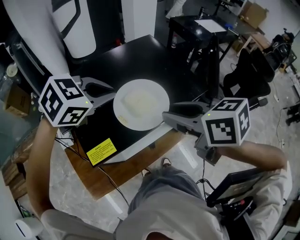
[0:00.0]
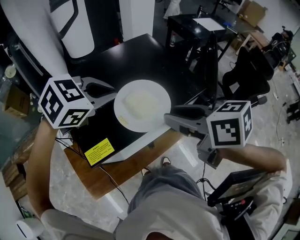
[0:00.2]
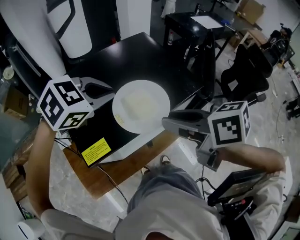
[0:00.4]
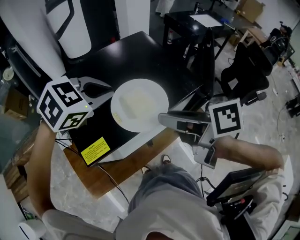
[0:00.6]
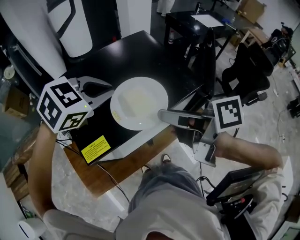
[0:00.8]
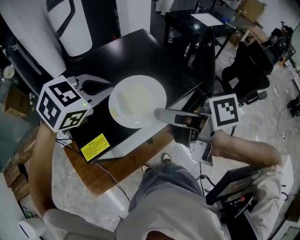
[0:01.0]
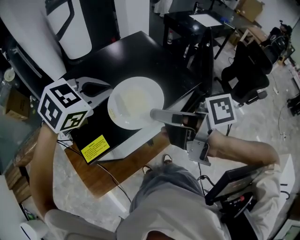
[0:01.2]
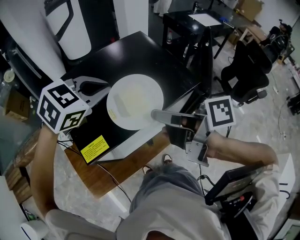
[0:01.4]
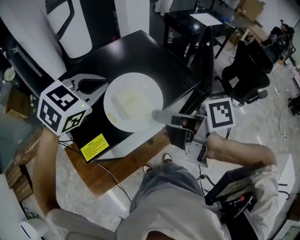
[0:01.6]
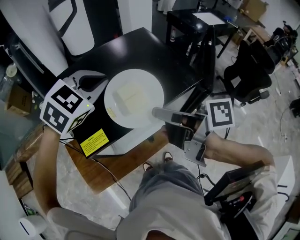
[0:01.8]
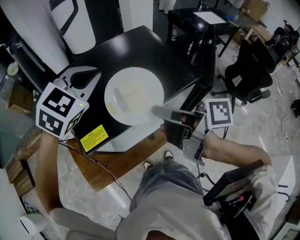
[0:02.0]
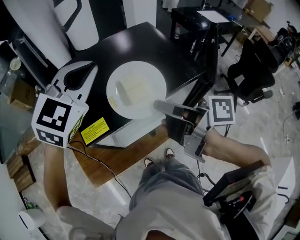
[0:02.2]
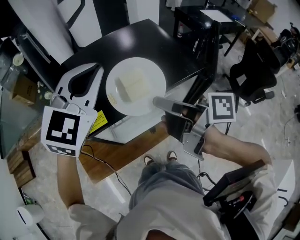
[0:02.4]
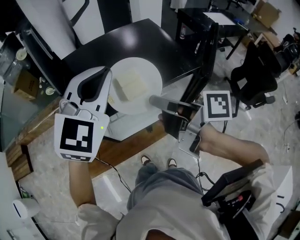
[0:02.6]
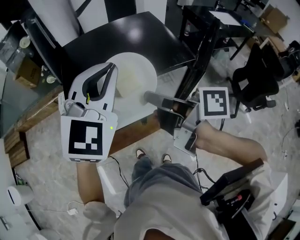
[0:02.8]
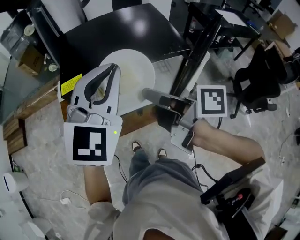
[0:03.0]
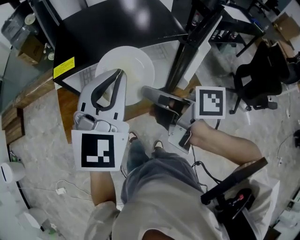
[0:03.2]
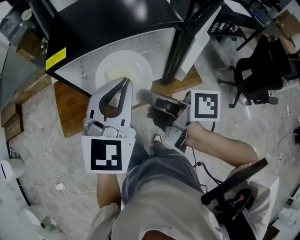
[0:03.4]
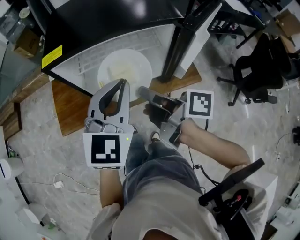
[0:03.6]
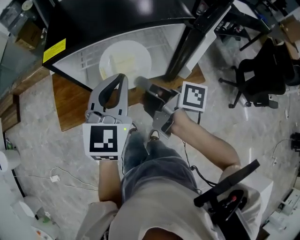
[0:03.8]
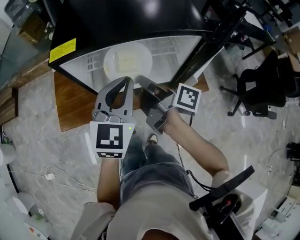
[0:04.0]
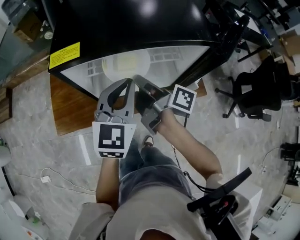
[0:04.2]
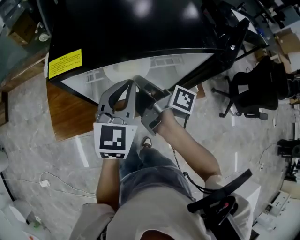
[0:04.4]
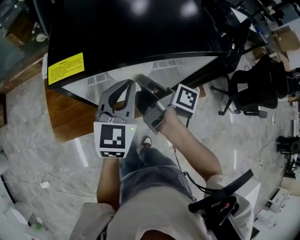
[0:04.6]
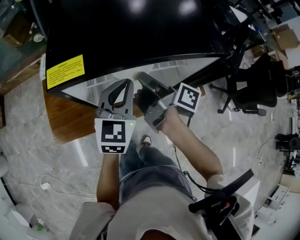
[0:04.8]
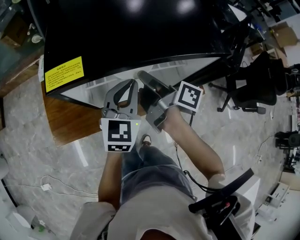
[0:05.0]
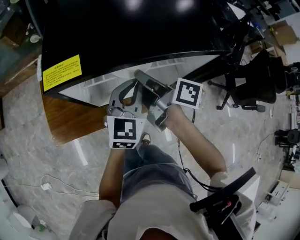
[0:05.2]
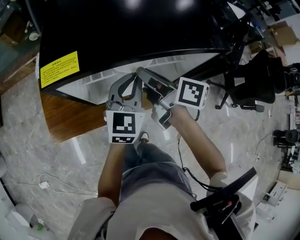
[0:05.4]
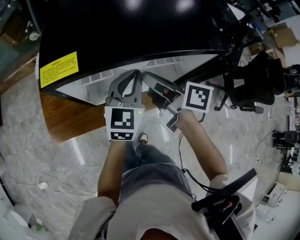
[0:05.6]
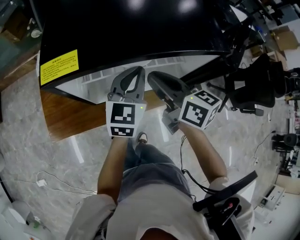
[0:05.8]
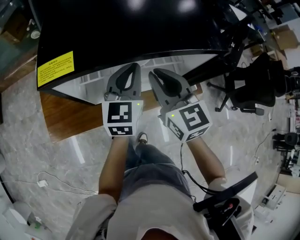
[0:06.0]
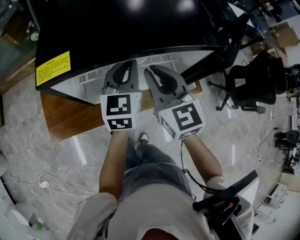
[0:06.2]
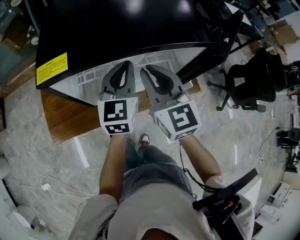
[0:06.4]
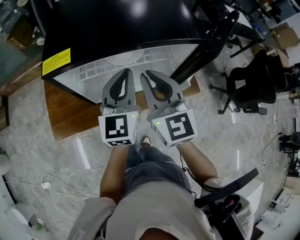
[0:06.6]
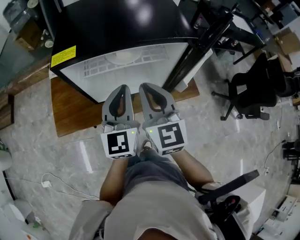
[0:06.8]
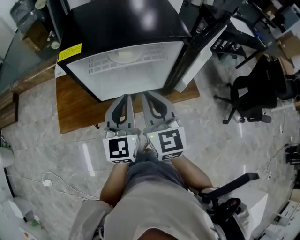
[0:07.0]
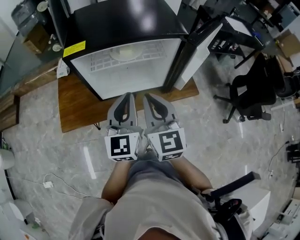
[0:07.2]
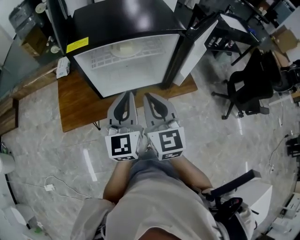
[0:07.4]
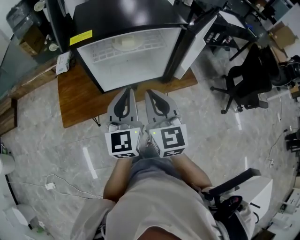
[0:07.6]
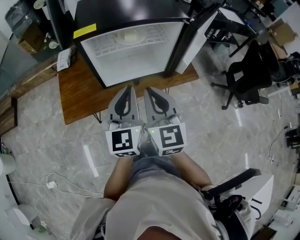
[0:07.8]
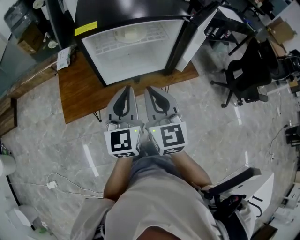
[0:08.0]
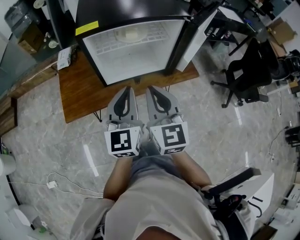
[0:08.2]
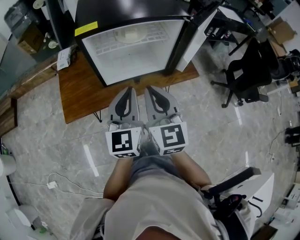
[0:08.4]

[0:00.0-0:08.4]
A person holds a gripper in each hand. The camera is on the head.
0:00.0 to 0:01.4: The right gripper changes its angle by some 50 degrees, and closes its fingers.
0:01.4 to 0:02.8: The right gripper shifts about 5 cm backward; the left gripper travels backward, upward and to the right by about 15 cm, and points its fingers roughly 30 degrees further upward.
0:02.8 to 0:04.2: Both grippers travel together downward, roughly 20 cm. The left gripper rotates some 30 degrees.
0:04.2 to 0:05.6: The left gripper heads forward and downward, covering approximately 10 cm; the right gripper swivels some 30 degrees.
0:05.6 to 0:07.0: The two grippers go some 25 cm backward. The right gripper twists some 60 degrees counterclockwise, seen from behind.
0:07.0 to 0:08.4: The two grippers go some 15 cm backward and to the left.

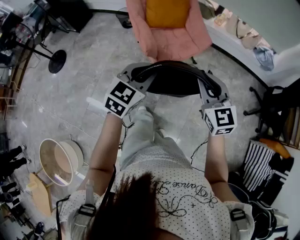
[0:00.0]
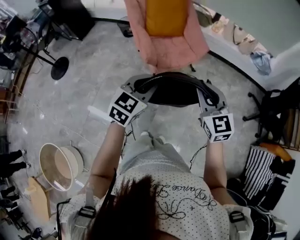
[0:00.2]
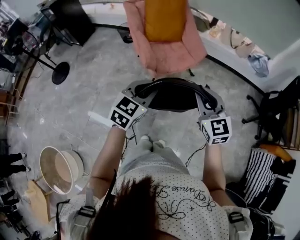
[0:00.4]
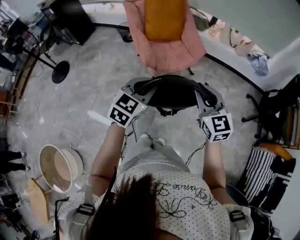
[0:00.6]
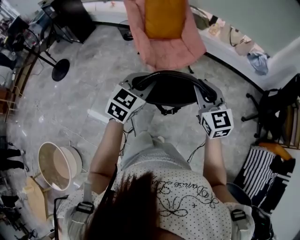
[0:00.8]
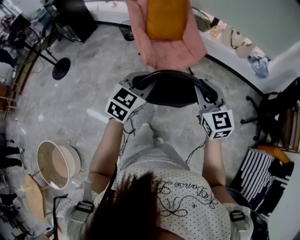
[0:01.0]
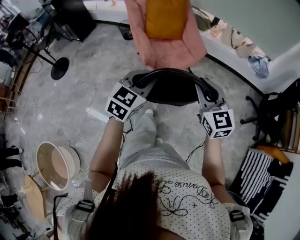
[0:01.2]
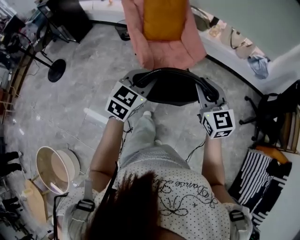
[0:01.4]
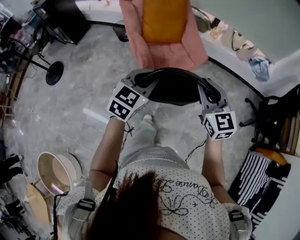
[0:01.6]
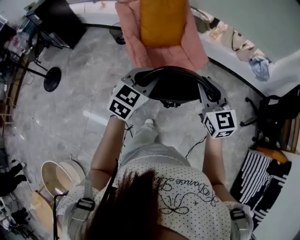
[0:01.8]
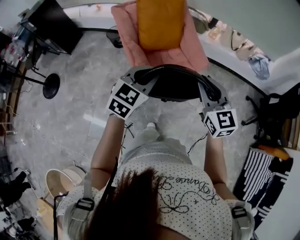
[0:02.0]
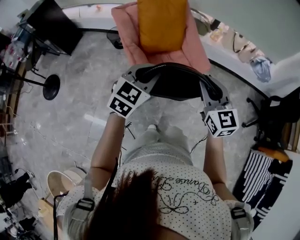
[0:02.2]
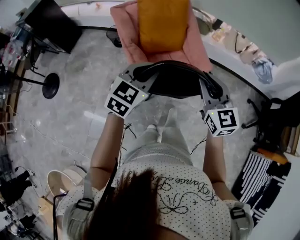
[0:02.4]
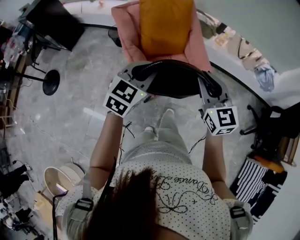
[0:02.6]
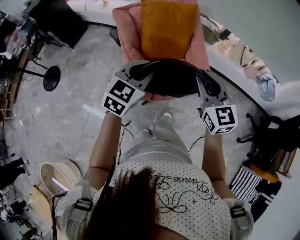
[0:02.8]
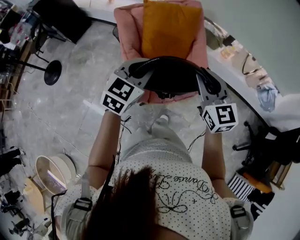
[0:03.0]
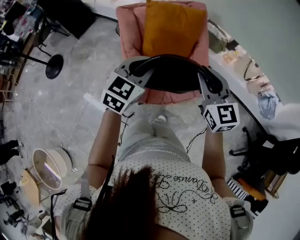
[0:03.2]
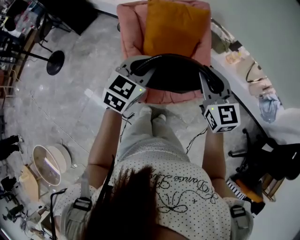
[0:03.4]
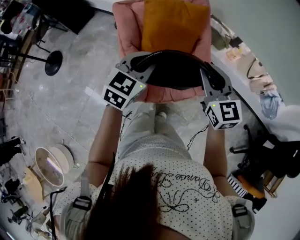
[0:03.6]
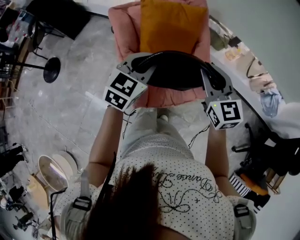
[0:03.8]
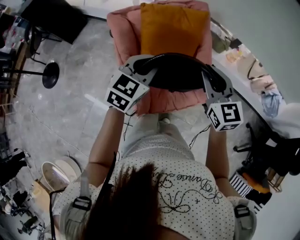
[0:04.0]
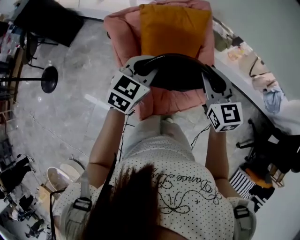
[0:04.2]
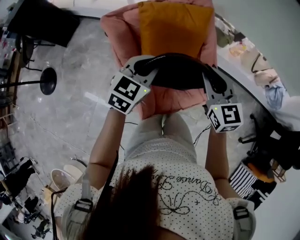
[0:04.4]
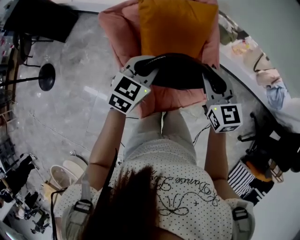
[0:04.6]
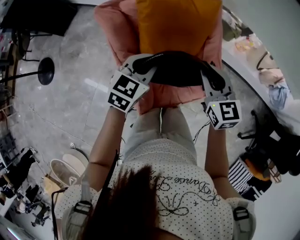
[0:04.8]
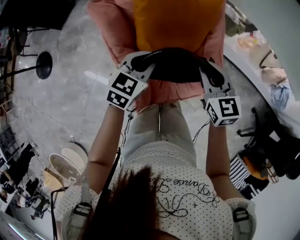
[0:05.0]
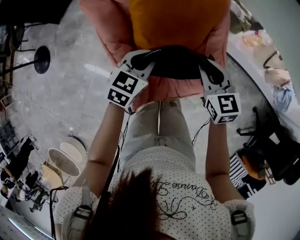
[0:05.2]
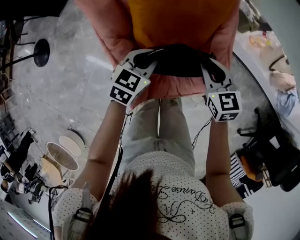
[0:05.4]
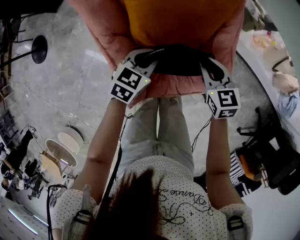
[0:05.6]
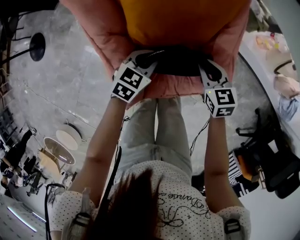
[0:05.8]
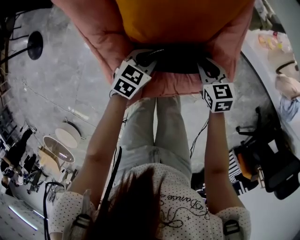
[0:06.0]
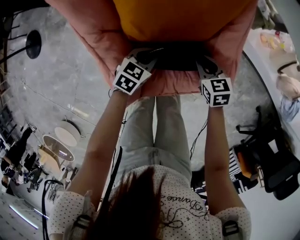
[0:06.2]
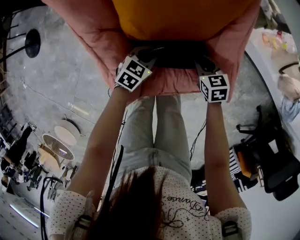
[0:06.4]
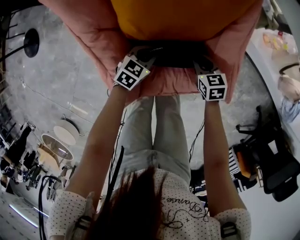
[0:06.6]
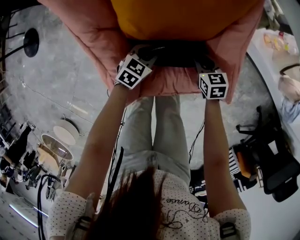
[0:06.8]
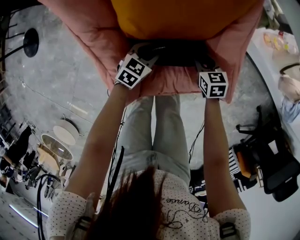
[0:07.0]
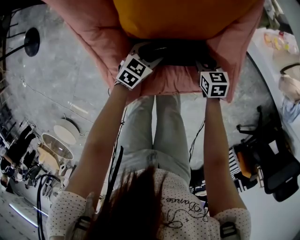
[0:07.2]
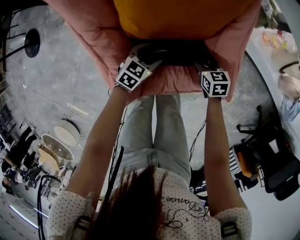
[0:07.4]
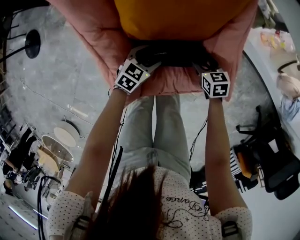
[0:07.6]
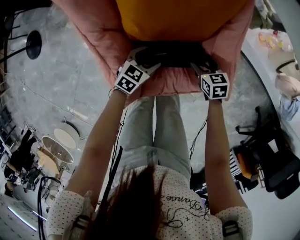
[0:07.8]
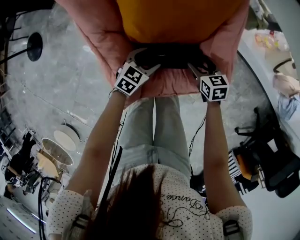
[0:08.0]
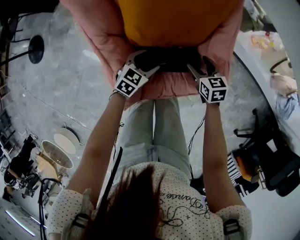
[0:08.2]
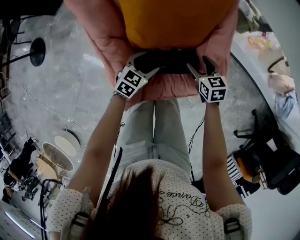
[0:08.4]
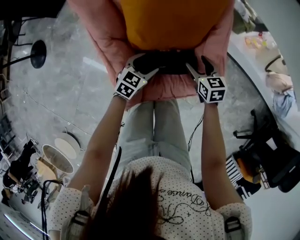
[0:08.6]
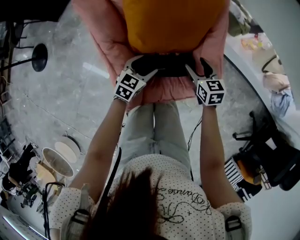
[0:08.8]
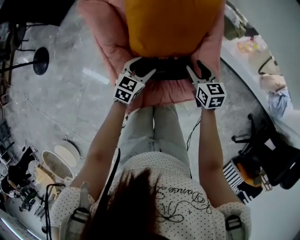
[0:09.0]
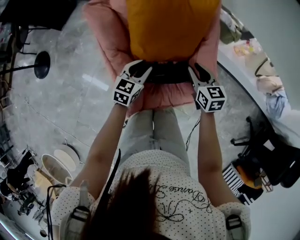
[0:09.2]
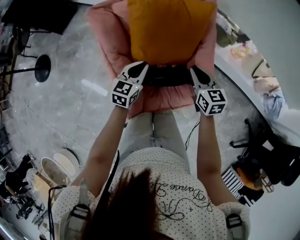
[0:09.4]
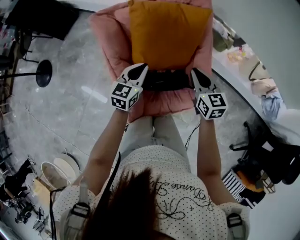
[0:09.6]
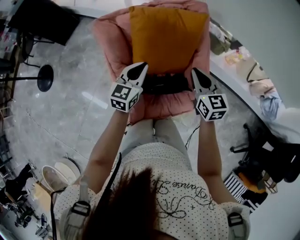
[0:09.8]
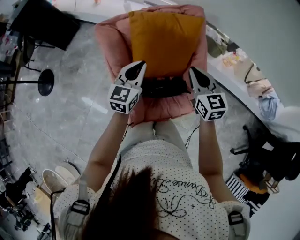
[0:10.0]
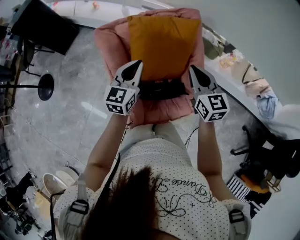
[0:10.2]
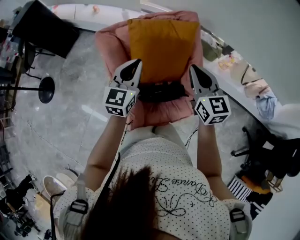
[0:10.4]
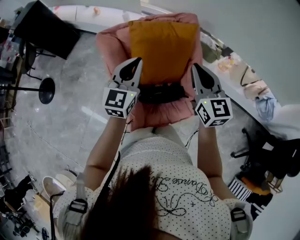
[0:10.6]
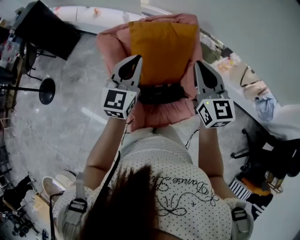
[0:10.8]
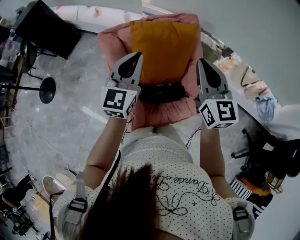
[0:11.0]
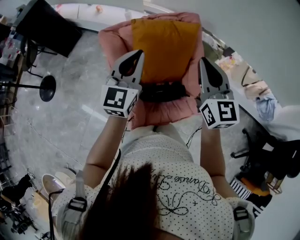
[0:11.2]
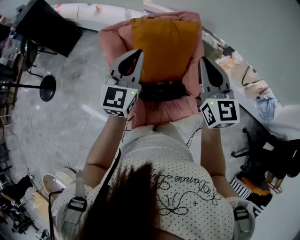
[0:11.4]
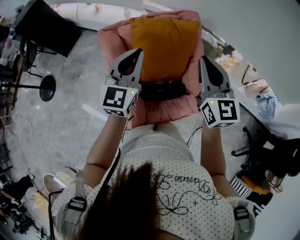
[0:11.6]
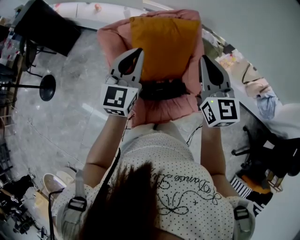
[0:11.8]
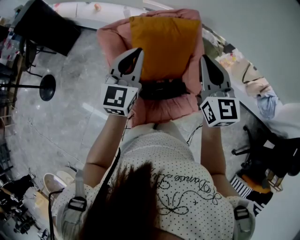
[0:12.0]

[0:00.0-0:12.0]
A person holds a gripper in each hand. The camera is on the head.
0:00.0 to 0:01.6: The two grippers go approximately 5 cm forward.
0:01.6 to 0:03.0: The grippers both shift forward by roughly 30 cm.
0:03.0 to 0:04.4: The grippers both shift forward by roughly 15 cm.
0:04.4 to 0:06.0: The two grippers go about 30 cm downward. The right gripper turns by about 30 degrees. The left gripper rotates approximately 30 degrees.
0:06.0 to 0:07.6: Both grippers move downward, roughly 10 cm. The right gripper opens its fingers, while the left gripper opens up.
0:07.6 to 0:09.0: Both grippers move upward, about 15 cm.
0:09.0 to 0:10.4: The two grippers go roughly 25 cm upward. The left gripper swivels about 30 degrees, and closes up; the right gripper swivels roughly 30 degrees, and closes its fingers.
0:10.4 to 0:12.0: Both grippers move upward, approximately 5 cm.

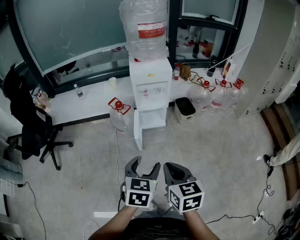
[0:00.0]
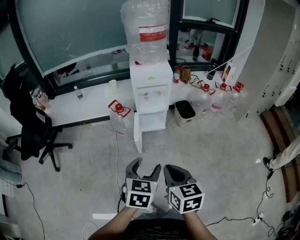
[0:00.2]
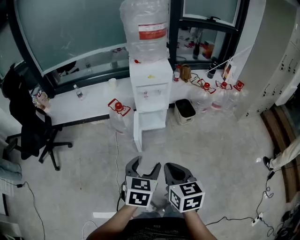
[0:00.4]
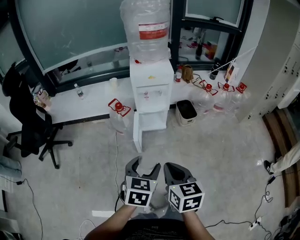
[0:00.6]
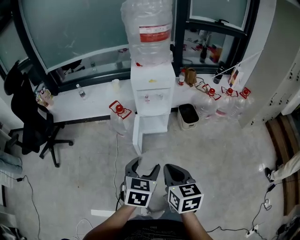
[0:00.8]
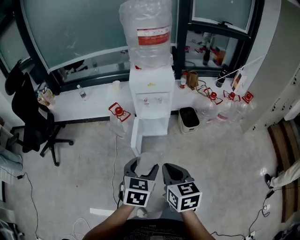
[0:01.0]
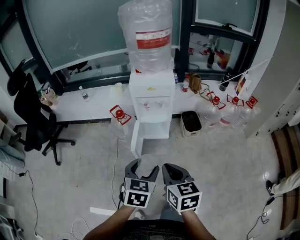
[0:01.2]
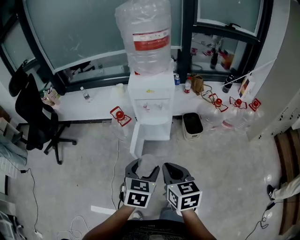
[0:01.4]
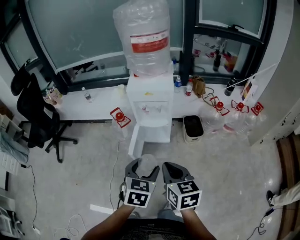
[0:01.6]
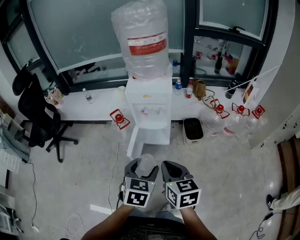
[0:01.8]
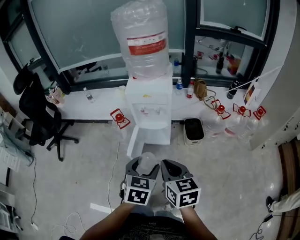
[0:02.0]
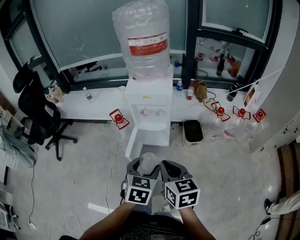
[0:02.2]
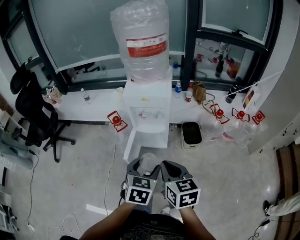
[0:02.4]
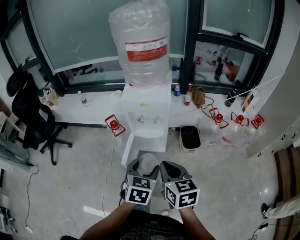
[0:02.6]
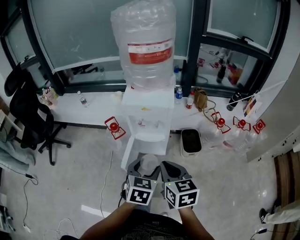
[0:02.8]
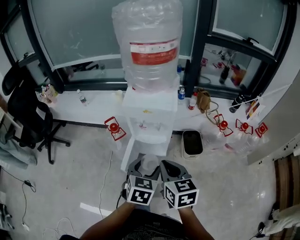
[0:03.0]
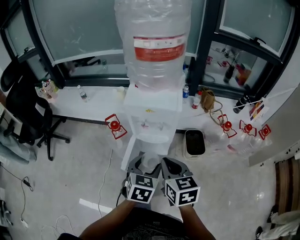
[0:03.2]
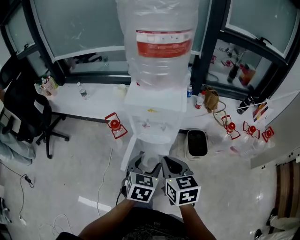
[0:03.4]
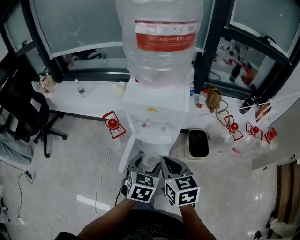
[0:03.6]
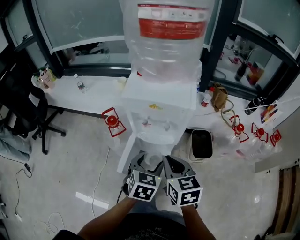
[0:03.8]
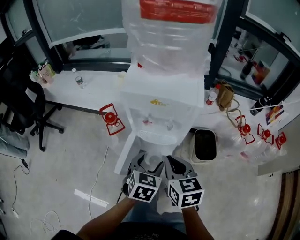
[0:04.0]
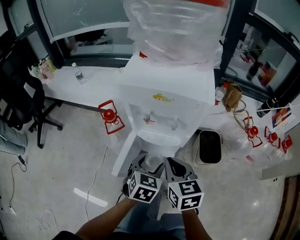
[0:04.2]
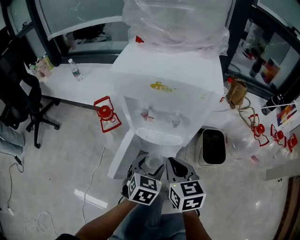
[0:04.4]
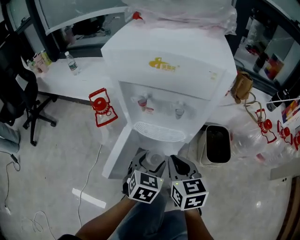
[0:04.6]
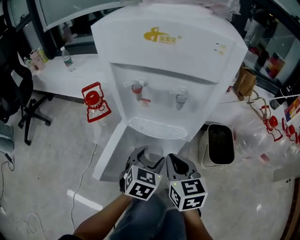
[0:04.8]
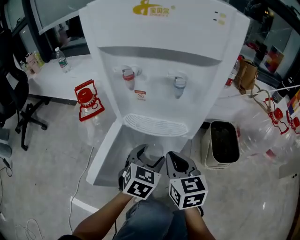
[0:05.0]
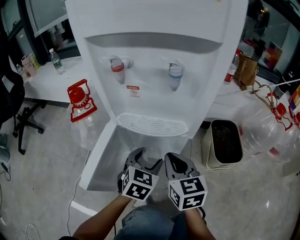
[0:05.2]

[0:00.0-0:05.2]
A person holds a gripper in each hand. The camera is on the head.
0:00.0 to 0:01.8: Both grippers move forward and to the right, roughly 25 cm.
0:01.8 to 0:03.4: The right gripper travels forward by about 20 cm, while the left gripper moves forward and downward, some 20 cm.
0:03.4 to 0:05.2: The grippers both shift downward by some 50 cm.
